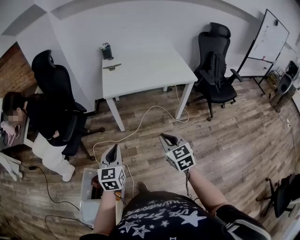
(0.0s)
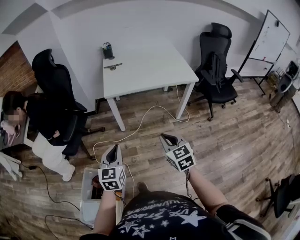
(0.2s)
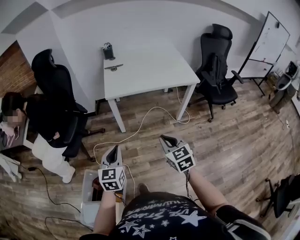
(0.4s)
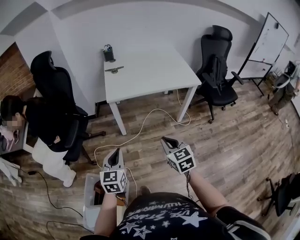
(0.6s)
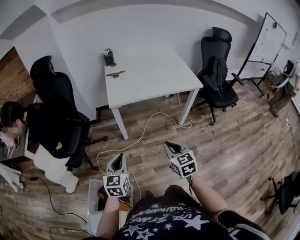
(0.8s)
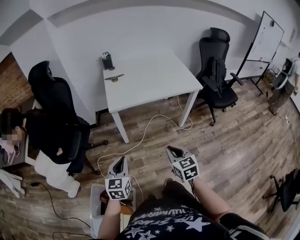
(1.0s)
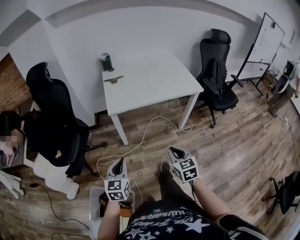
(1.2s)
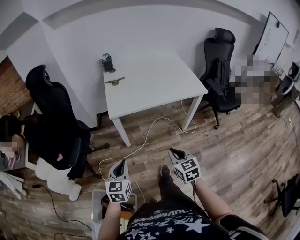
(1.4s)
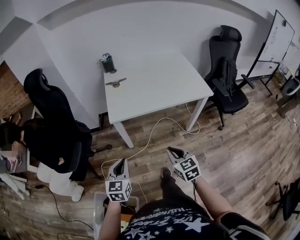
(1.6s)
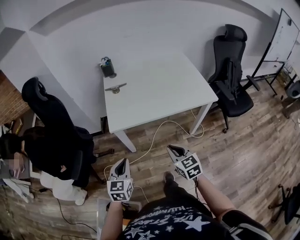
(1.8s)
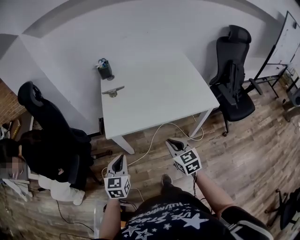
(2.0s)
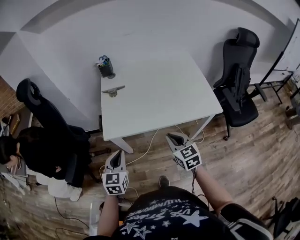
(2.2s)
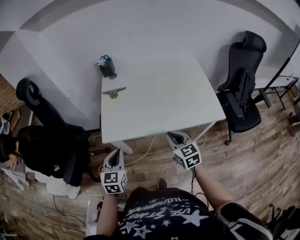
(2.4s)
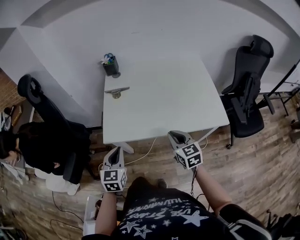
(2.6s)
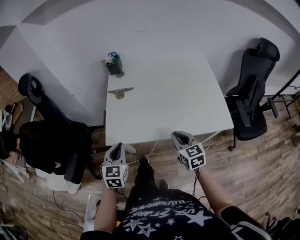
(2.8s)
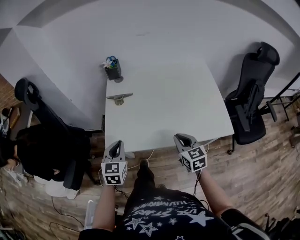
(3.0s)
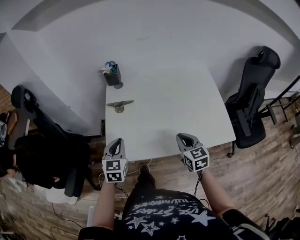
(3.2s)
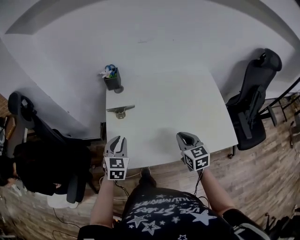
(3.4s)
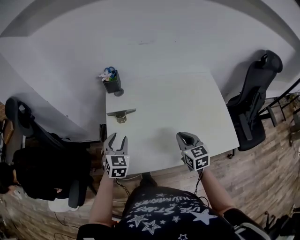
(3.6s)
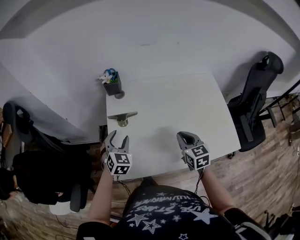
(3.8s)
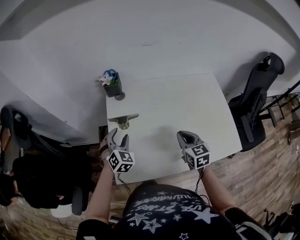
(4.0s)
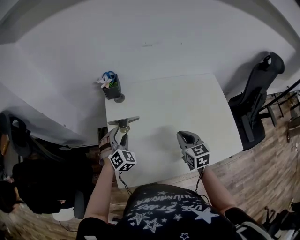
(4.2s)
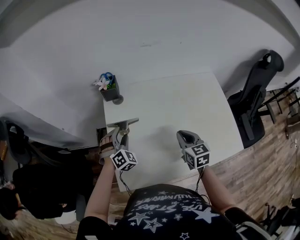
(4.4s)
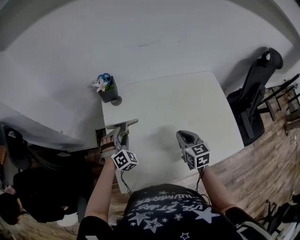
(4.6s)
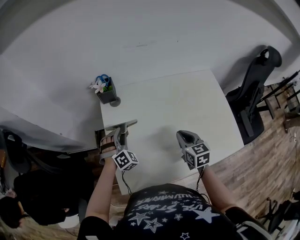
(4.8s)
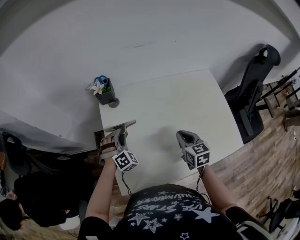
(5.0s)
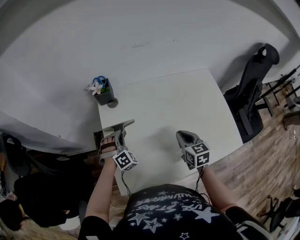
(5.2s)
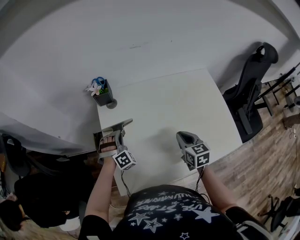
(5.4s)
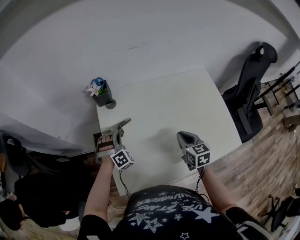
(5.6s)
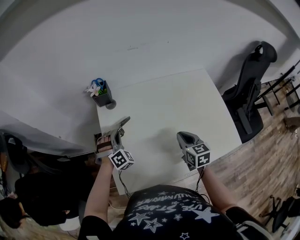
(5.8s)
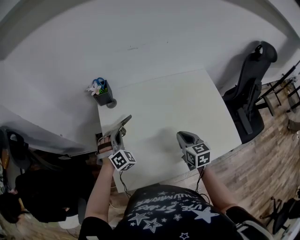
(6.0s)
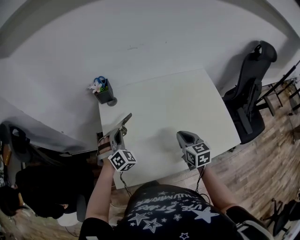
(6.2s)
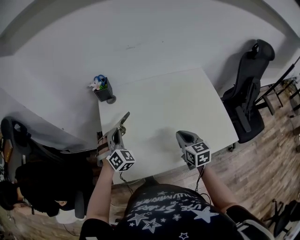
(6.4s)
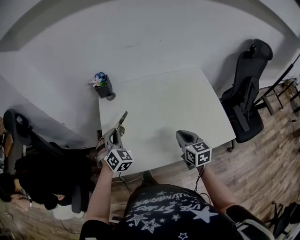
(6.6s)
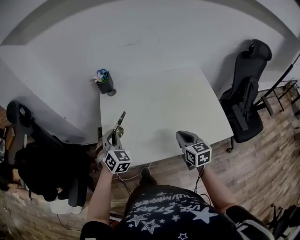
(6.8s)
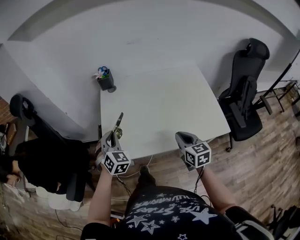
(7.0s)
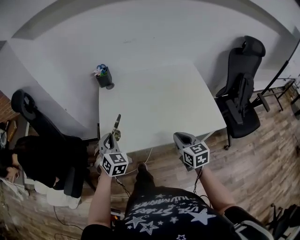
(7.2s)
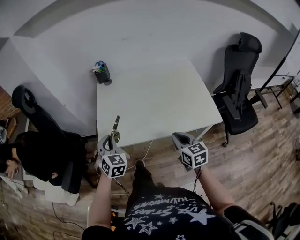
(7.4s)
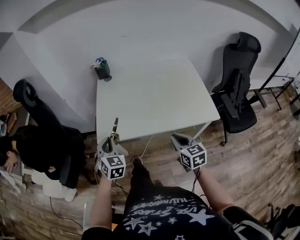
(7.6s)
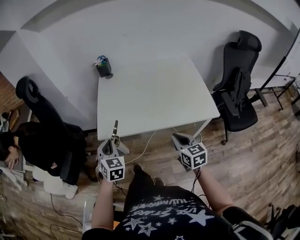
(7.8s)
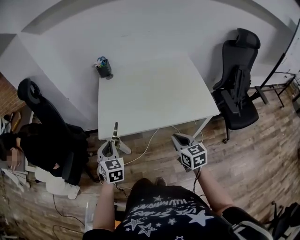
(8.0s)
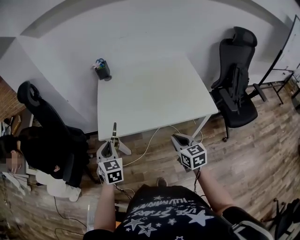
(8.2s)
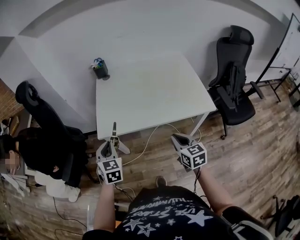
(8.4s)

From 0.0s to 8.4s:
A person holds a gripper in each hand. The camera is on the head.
From 0.0s to 1.4s: The grippers both shift forward and downward by about 15 cm.
From 1.4s to 2.8s: Both grippers travel together forward, approximately 40 cm.
From 2.8s to 4.2s: The two grippers go roughly 30 cm forward. The left gripper rolls clockwise, seen from behind, by some 50 degrees, and opens.
From 4.2s to 5.6s: The left gripper shifts by about 5 cm, turns by about 30 degrees, and closes its fingers.
From 5.6s to 7.0s: The right gripper is displaced backward by about 20 cm. Meanwhile the left gripper is displaced backward and upward by some 25 cm, and swivels about 40 degrees.
From 7.0s to 8.4s: The two grippers go roughly 20 cm backward. The left gripper swivels roughly 20 degrees.

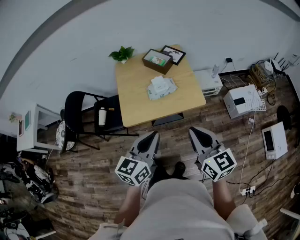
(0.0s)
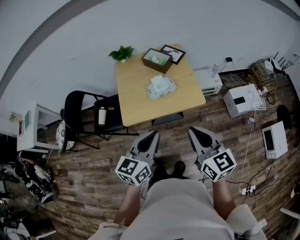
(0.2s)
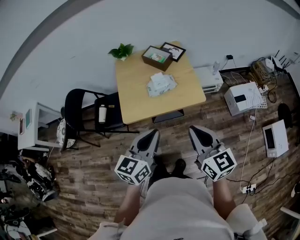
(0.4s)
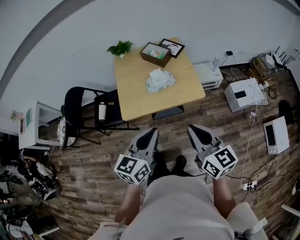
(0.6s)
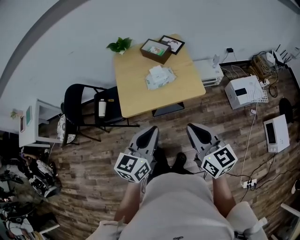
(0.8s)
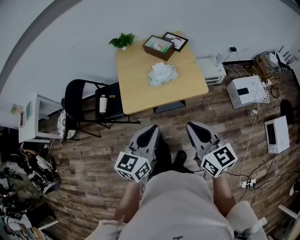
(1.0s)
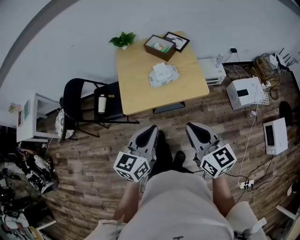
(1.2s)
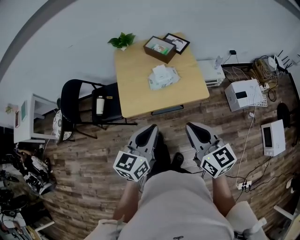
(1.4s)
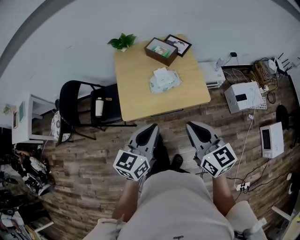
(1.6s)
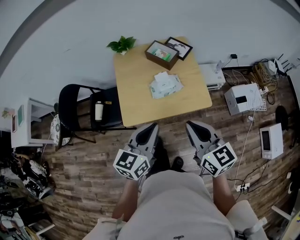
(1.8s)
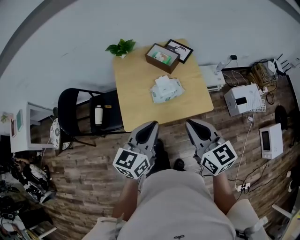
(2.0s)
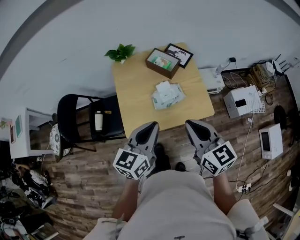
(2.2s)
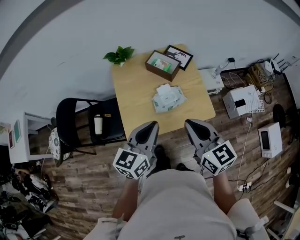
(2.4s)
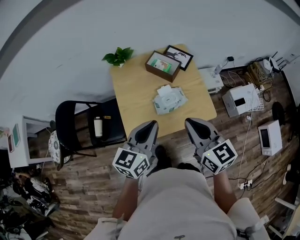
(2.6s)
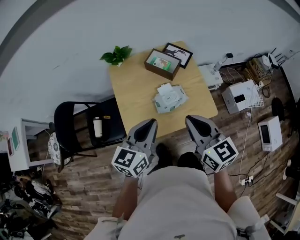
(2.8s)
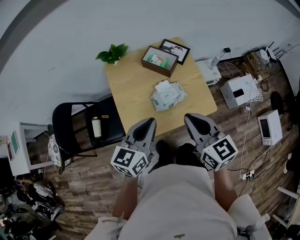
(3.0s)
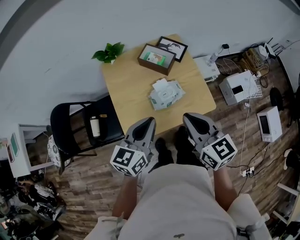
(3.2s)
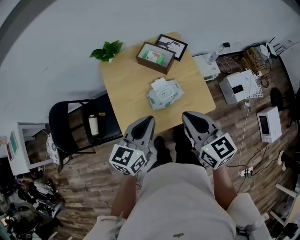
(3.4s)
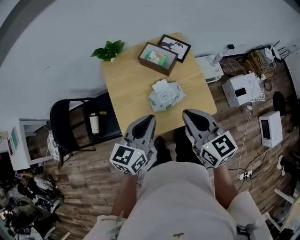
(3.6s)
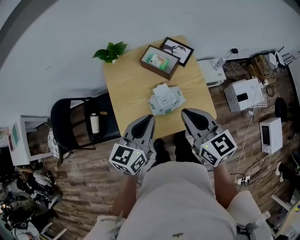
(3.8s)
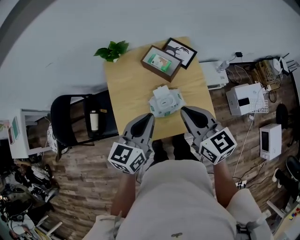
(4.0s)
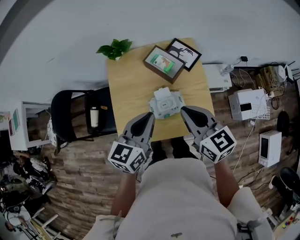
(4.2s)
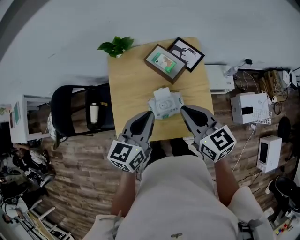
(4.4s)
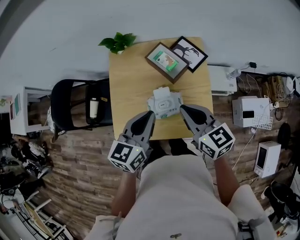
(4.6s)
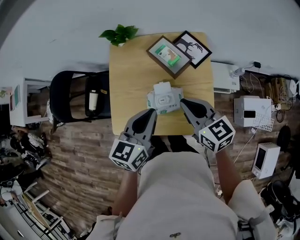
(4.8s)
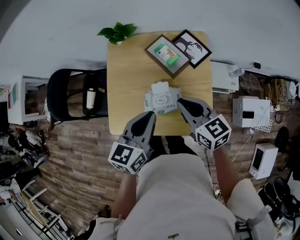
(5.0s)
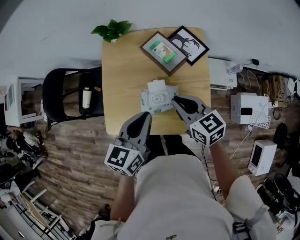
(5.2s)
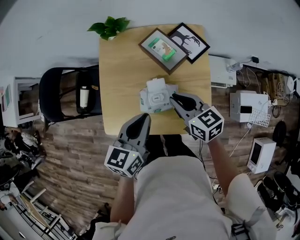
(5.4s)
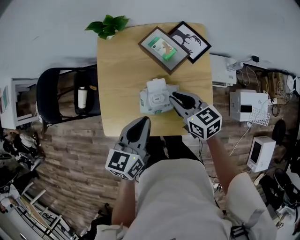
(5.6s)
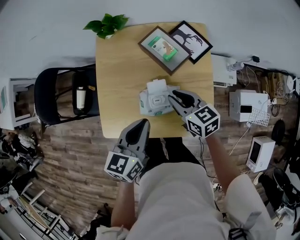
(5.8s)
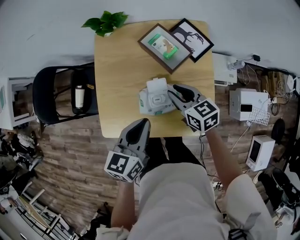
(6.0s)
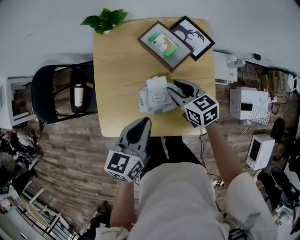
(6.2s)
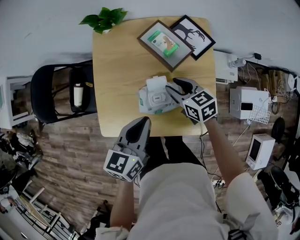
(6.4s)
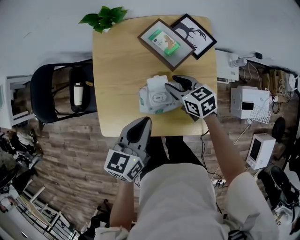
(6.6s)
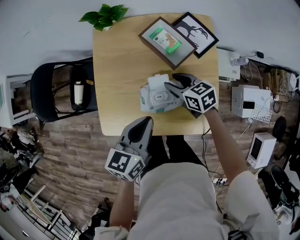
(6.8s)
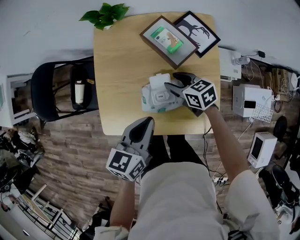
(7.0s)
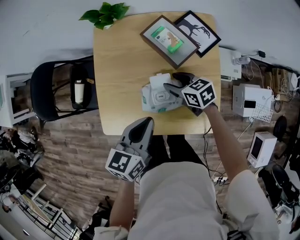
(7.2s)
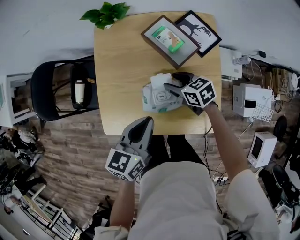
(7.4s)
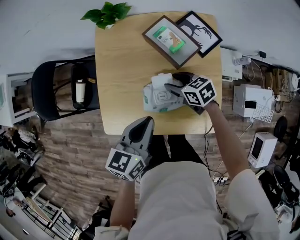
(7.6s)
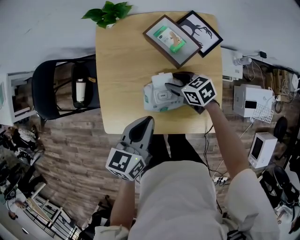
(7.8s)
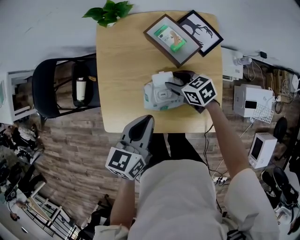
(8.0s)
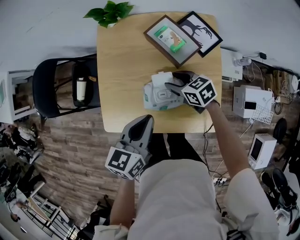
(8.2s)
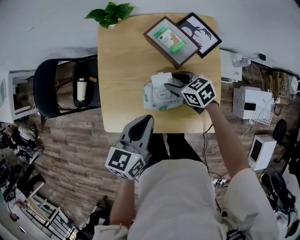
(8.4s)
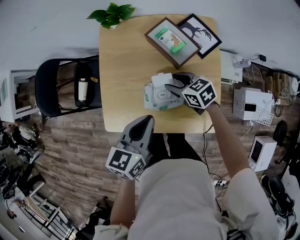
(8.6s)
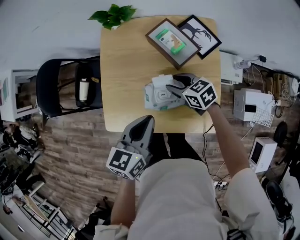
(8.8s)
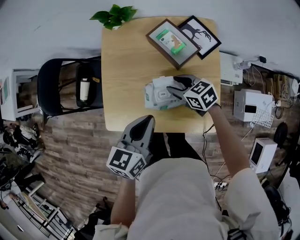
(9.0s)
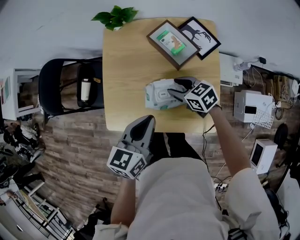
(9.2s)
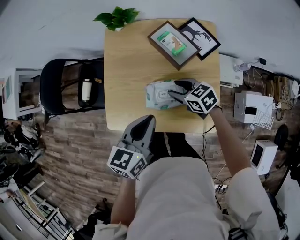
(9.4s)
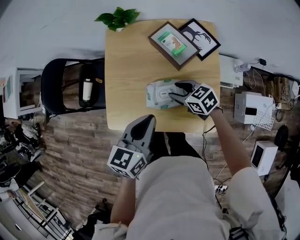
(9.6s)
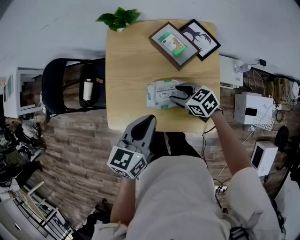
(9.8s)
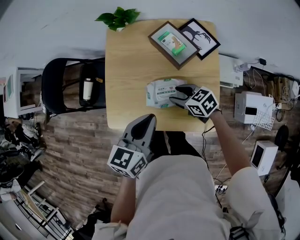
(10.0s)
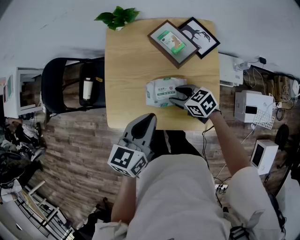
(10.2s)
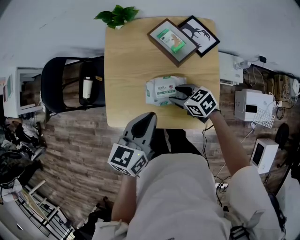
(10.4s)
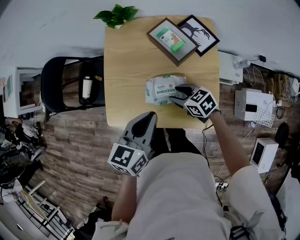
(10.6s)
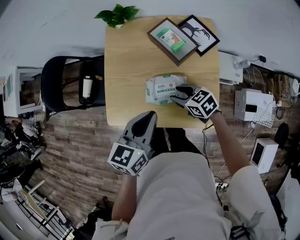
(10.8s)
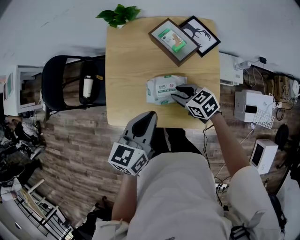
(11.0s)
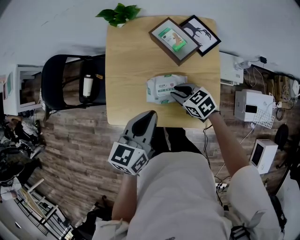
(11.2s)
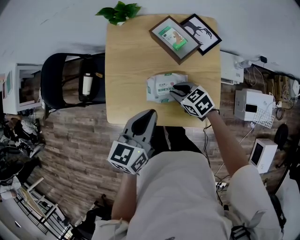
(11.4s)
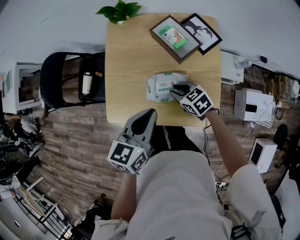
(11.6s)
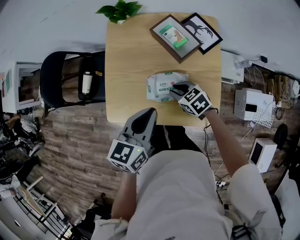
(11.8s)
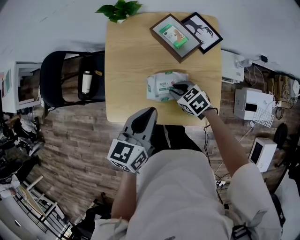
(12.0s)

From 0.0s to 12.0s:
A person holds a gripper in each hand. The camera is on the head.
From 0.0s to 1.6s: Both grippers move forward, about 5 cm.
From 1.6s to 3.0s: The two grippers go about 20 cm forward and to the left.
From 3.0s to 4.4s: Both grippers move forward and to the right, roughly 15 cm.
From 4.4s to 6.0s: The left gripper goes approximately 10 cm downward, while the right gripper is displaced downward and forward by some 20 cm, and opens up.
From 6.0s to 7.6s: The right gripper is displaced downward by some 10 cm, and opens its fingers.
From 7.6s to 9.0s: The grippers make only small movements.
From 9.0s to 10.4s: The right gripper shifts roughly 5 cm backward.
From 10.4s to 12.0s: The right gripper closes.

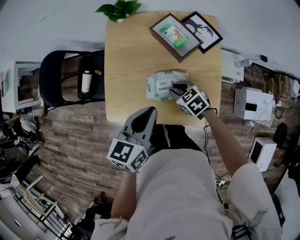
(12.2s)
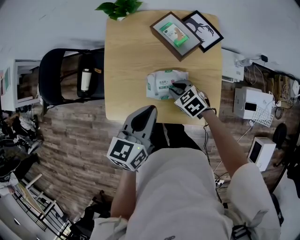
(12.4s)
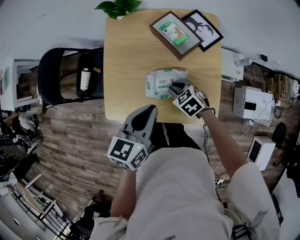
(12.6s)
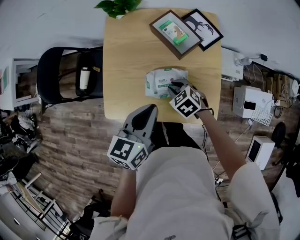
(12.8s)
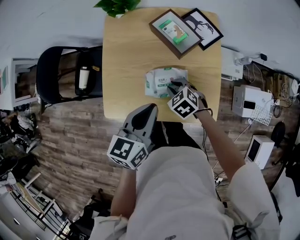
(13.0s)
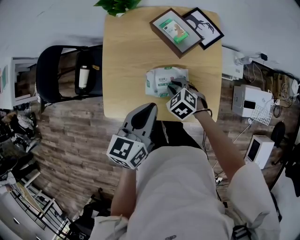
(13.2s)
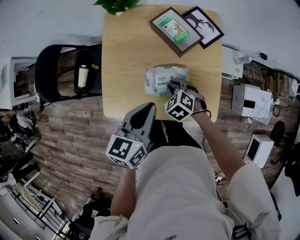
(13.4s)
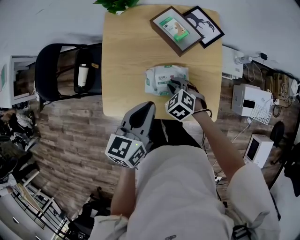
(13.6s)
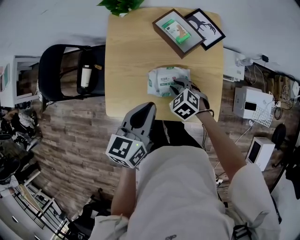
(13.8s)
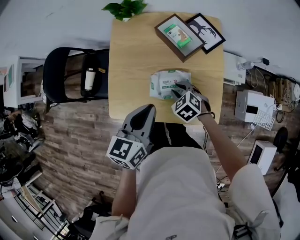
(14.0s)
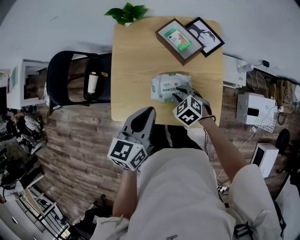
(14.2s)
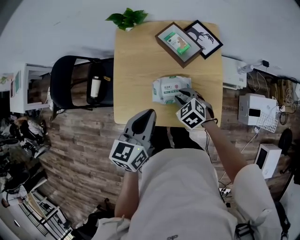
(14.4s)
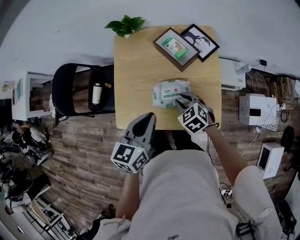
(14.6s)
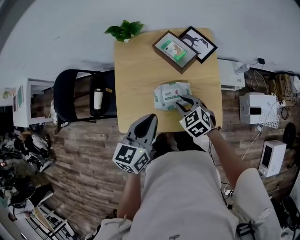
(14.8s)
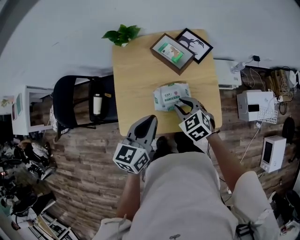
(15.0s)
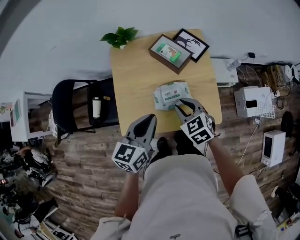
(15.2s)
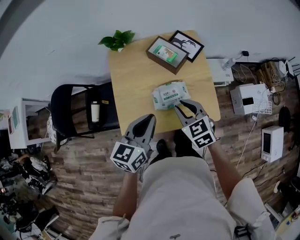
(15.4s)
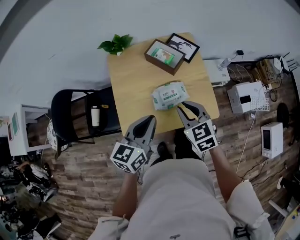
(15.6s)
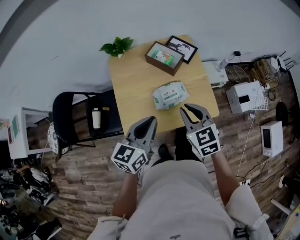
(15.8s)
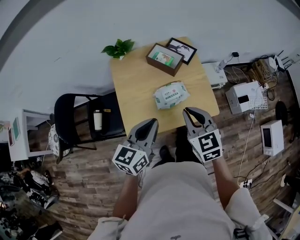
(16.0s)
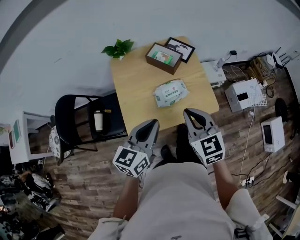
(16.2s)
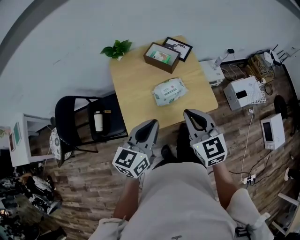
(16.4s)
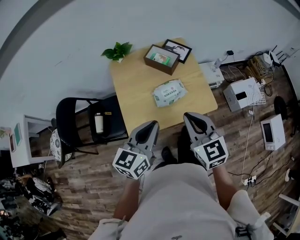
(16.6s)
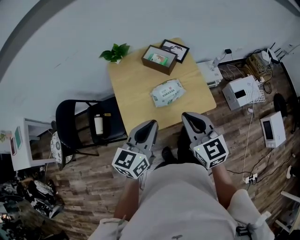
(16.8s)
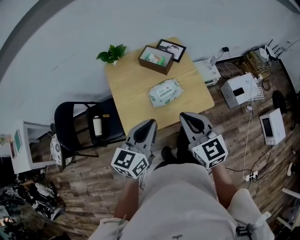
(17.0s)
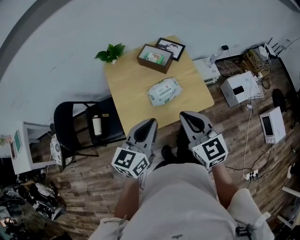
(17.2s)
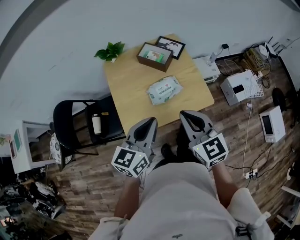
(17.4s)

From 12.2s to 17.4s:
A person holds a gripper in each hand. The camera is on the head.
From 14.0s to 15.6s: The left gripper moves upward, some 5 cm; the right gripper moves upward, about 20 cm, and rotates roughly 40 degrees.
From 15.6s to 17.4s: The right gripper is displaced backward and upward by some 15 cm, and swivels approximately 20 degrees; the left gripper goes roughly 10 cm backward.
